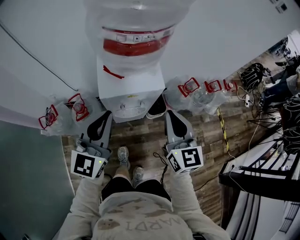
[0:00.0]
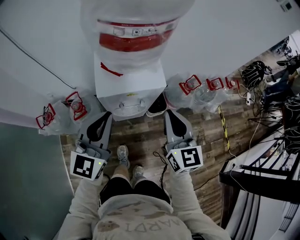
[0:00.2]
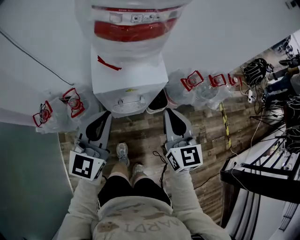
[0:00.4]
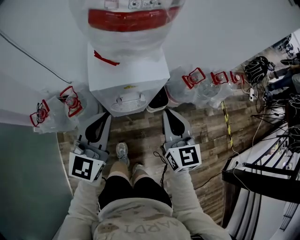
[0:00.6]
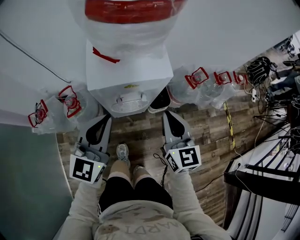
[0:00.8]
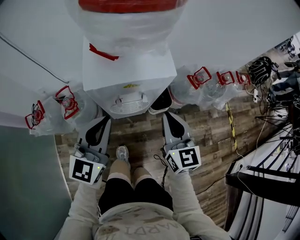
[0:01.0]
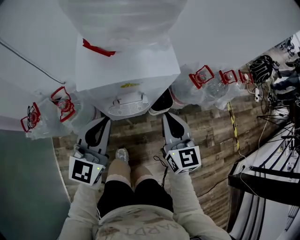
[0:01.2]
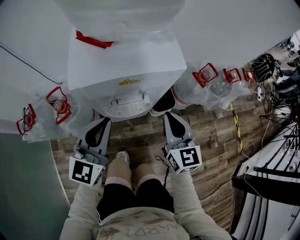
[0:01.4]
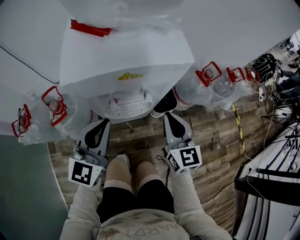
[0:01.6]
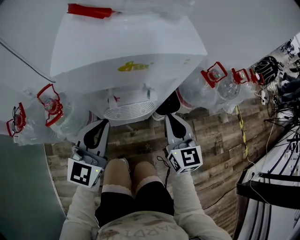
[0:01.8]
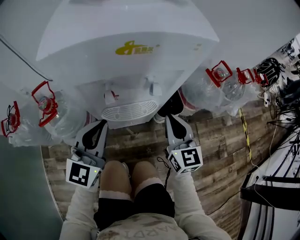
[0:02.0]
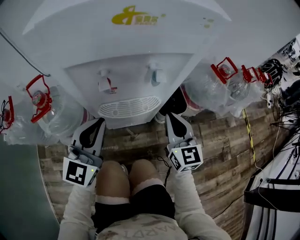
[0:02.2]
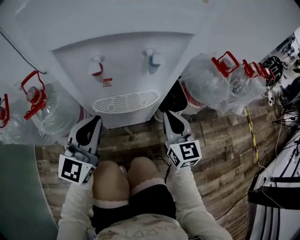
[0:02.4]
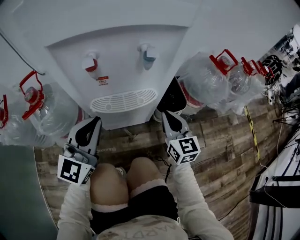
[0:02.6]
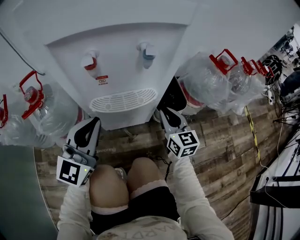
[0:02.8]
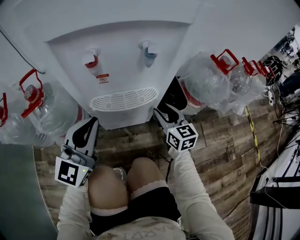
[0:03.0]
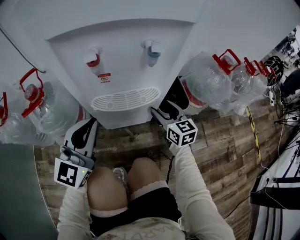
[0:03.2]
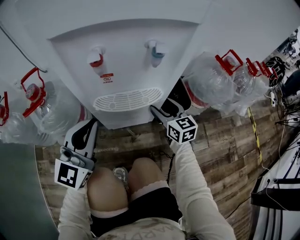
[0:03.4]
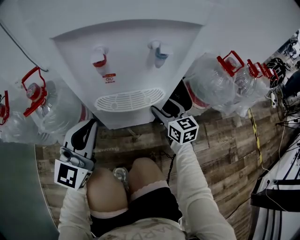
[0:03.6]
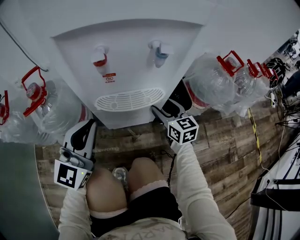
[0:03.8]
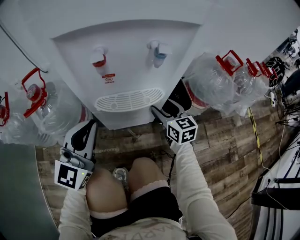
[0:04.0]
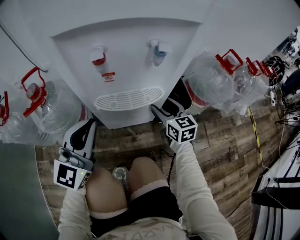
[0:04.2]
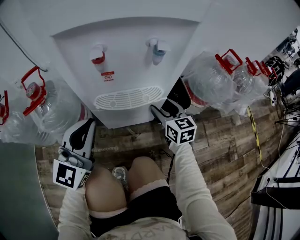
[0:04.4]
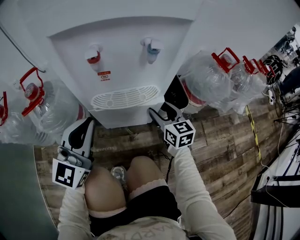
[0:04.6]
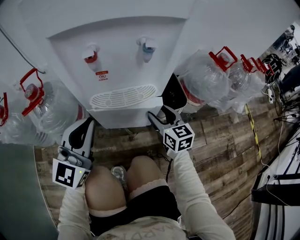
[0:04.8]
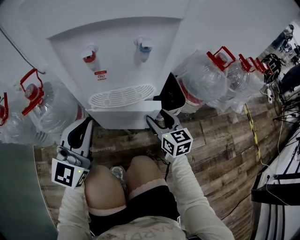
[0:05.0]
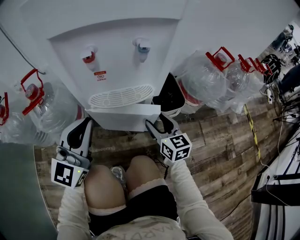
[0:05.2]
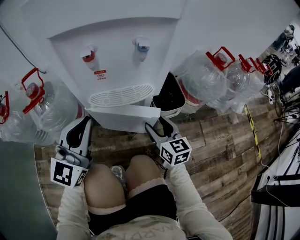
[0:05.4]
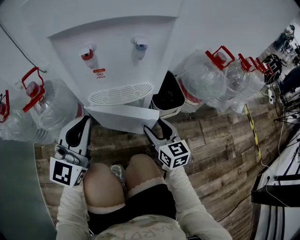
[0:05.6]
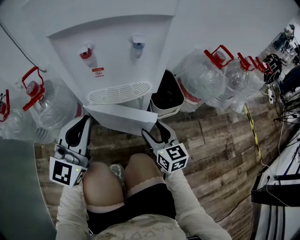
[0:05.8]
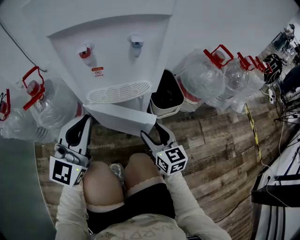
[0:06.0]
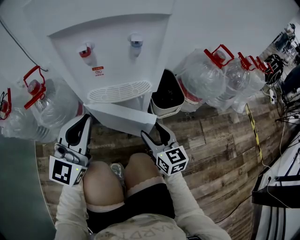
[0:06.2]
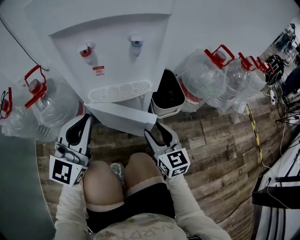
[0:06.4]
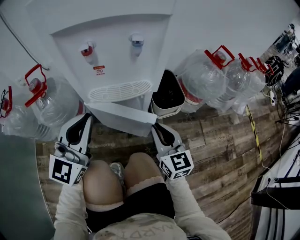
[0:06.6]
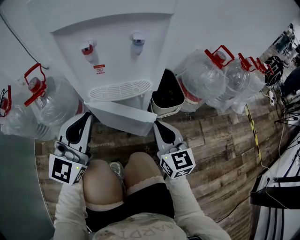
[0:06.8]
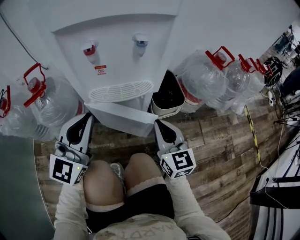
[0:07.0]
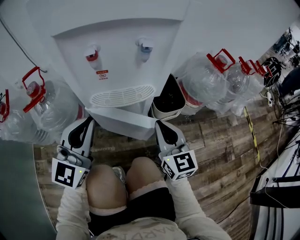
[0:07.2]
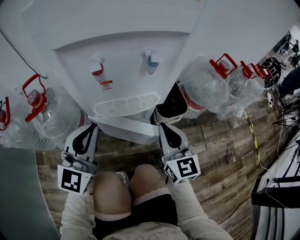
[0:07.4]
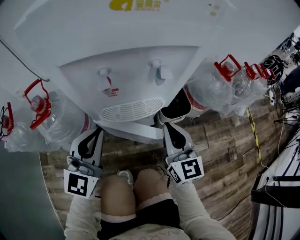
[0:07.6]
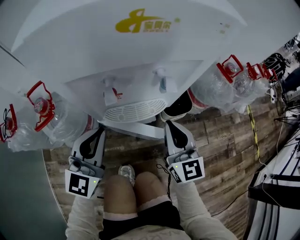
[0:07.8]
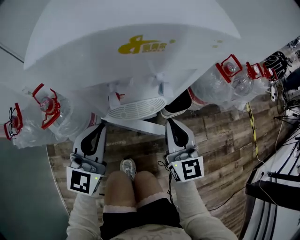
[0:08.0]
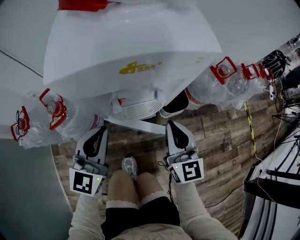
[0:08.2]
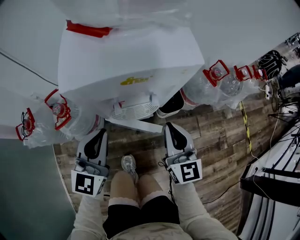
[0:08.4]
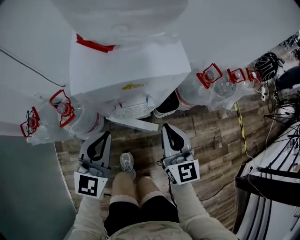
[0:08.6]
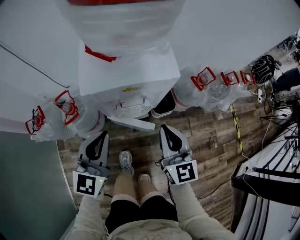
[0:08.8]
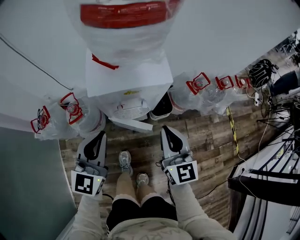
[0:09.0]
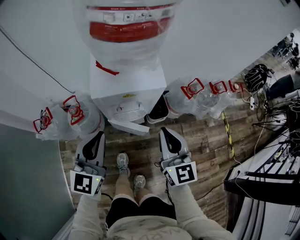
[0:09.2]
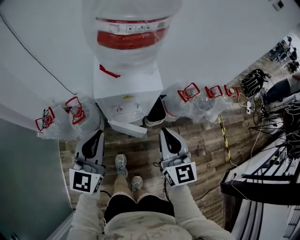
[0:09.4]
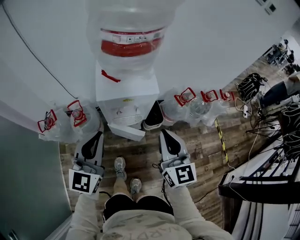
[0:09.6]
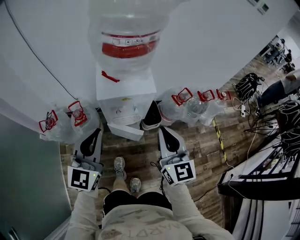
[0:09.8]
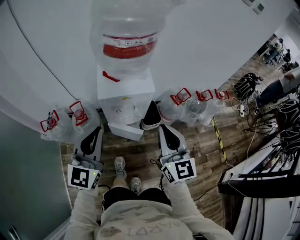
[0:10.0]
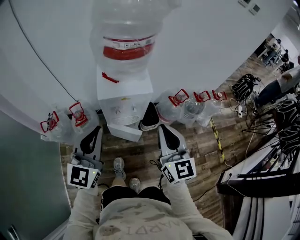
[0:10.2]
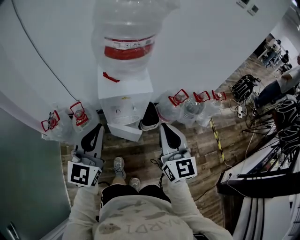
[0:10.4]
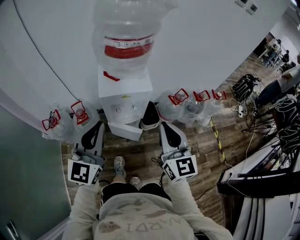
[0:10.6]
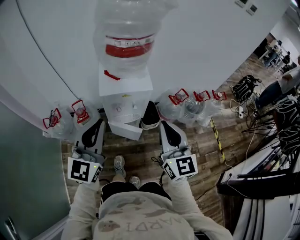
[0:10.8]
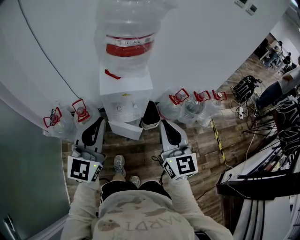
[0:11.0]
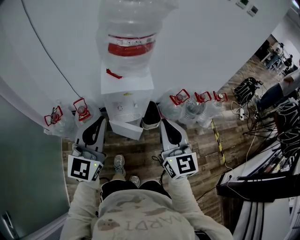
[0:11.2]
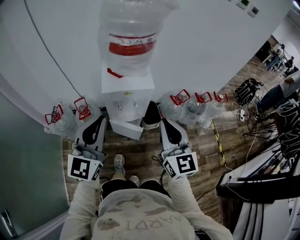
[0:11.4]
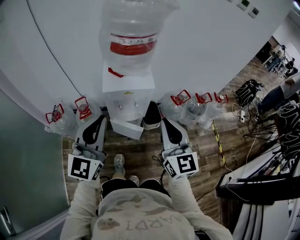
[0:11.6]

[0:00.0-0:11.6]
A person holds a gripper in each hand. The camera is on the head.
0:00.0 to 0:01.4: The two grippers go about 30 cm downward.
0:01.4 to 0:02.8: The grippers both shift downward by about 30 cm.
0:02.8 to 0:04.4: The right gripper shifts by roughly 5 cm, and opens its fingers.
0:04.4 to 0:05.8: The right gripper moves backward, approximately 10 cm.
0:05.8 to 0:07.2: The right gripper moves upward, some 10 cm, and closes.
0:07.2 to 0:08.8: Both grippers travel together upward, about 30 cm.
0:08.8 to 0:10.2: The grippers both shift upward and backward by about 30 cm.
0:10.2 to 0:11.6: The left gripper changes place by approximately 5 cm.

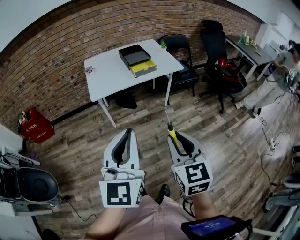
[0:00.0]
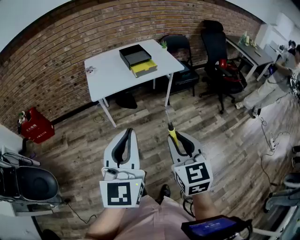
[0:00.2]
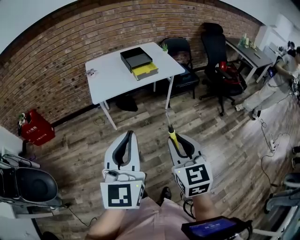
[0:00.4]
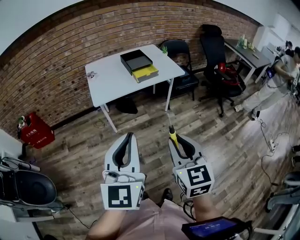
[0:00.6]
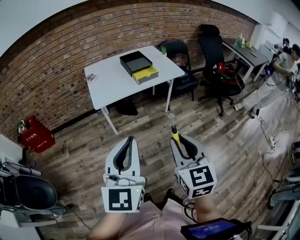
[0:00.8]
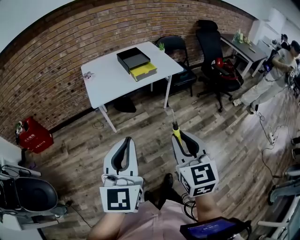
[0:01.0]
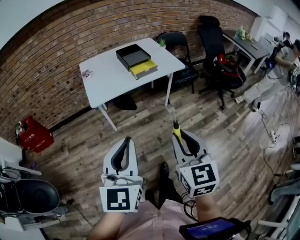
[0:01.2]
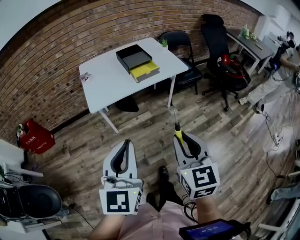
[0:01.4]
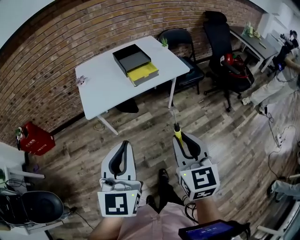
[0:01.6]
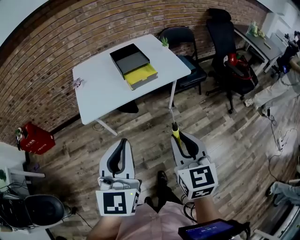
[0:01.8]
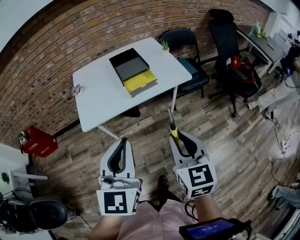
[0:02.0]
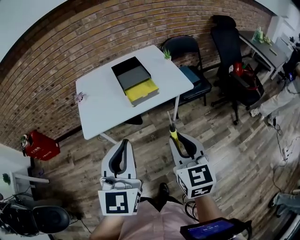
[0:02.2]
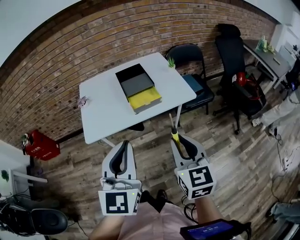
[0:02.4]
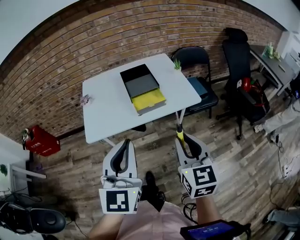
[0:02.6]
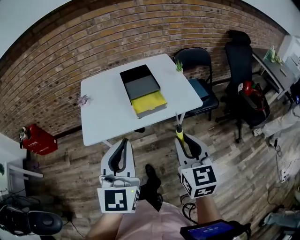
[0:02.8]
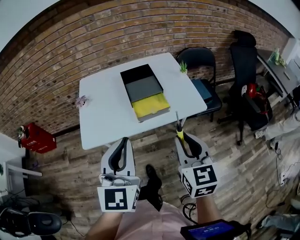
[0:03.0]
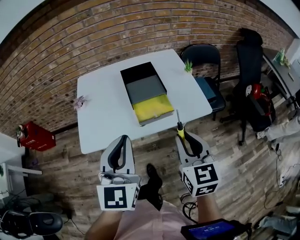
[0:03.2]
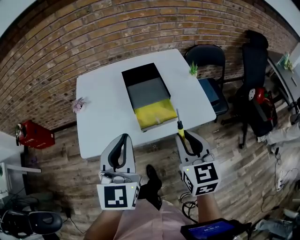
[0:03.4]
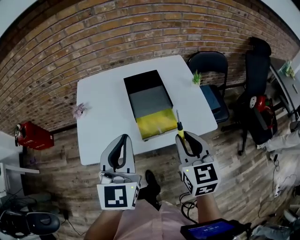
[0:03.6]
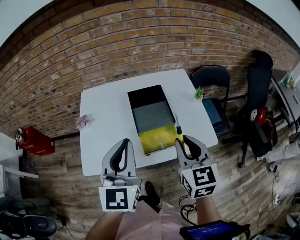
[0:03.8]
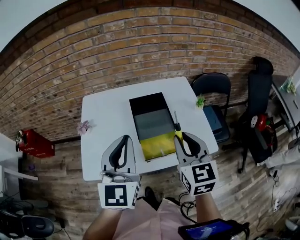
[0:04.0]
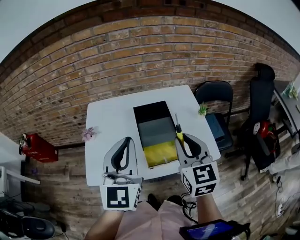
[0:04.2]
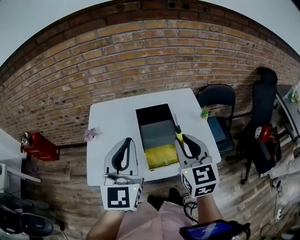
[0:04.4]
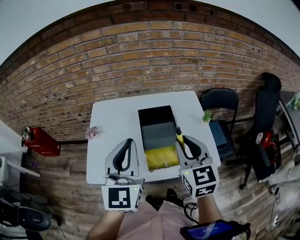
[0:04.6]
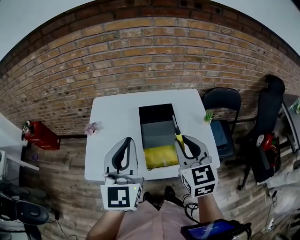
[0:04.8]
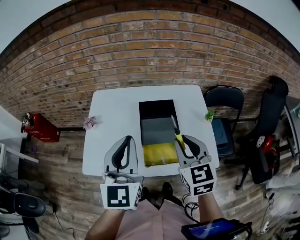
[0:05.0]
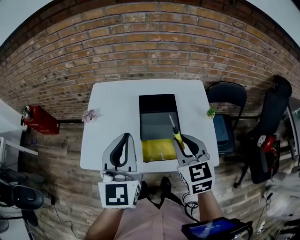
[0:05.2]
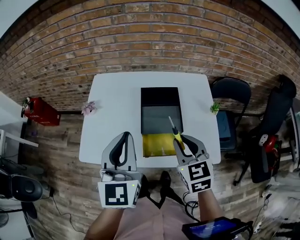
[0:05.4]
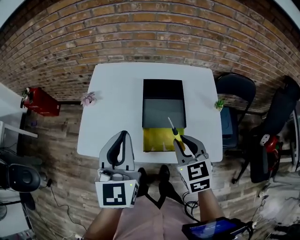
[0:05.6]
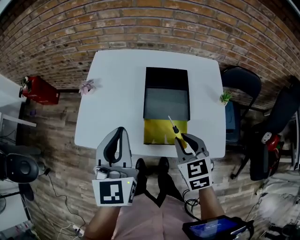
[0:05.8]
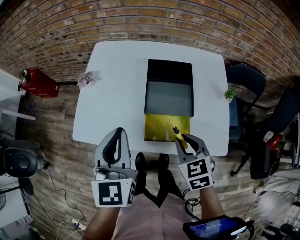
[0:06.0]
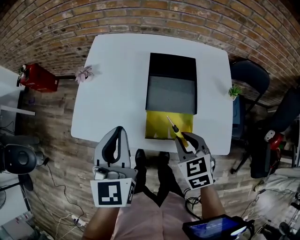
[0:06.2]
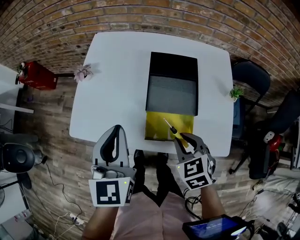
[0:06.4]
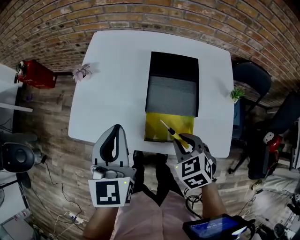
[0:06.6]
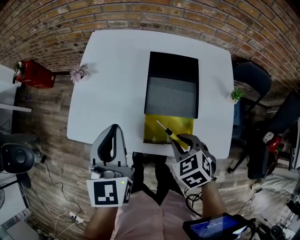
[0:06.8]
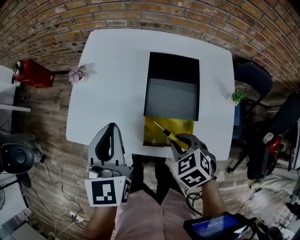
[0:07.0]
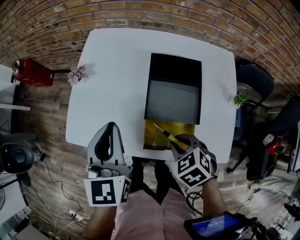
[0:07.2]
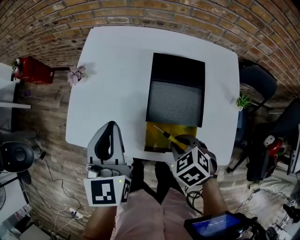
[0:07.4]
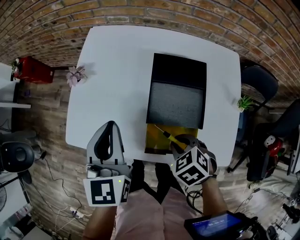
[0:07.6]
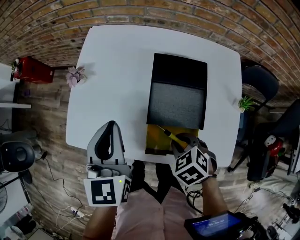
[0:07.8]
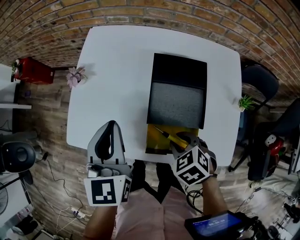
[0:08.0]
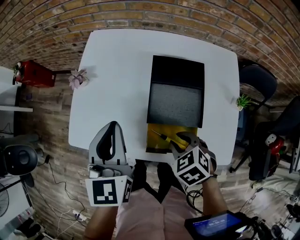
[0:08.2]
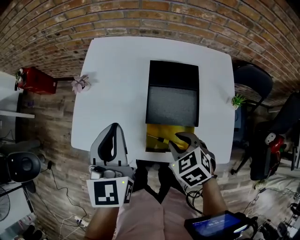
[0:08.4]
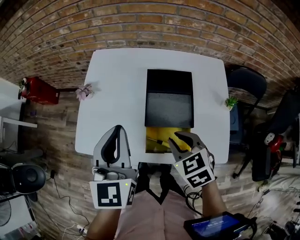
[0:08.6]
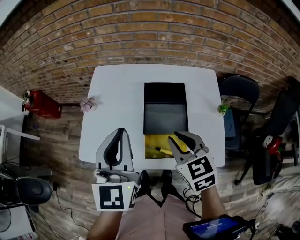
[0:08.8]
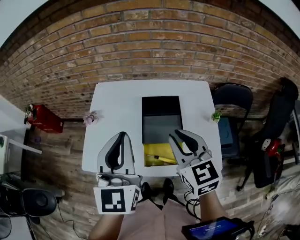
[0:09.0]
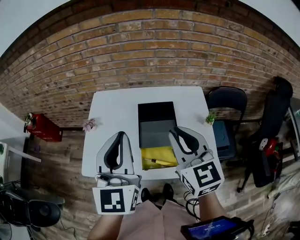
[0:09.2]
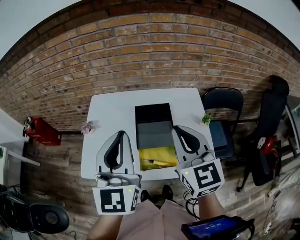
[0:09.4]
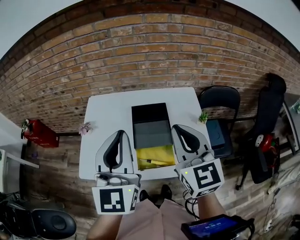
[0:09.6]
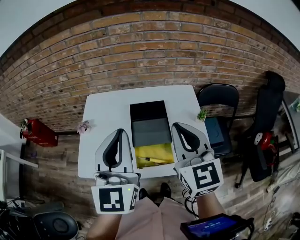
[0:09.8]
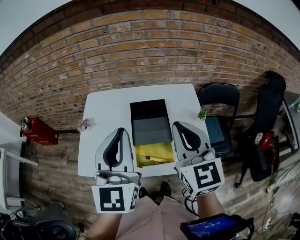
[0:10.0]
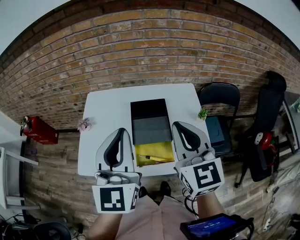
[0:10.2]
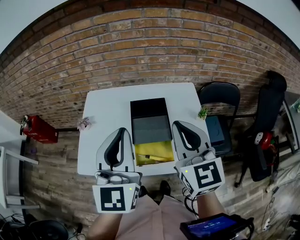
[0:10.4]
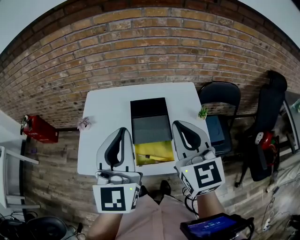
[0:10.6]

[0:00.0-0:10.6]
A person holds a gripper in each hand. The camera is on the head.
0:00.0 to 0:01.6: The two grippers go about 15 cm forward.
0:01.6 to 0:03.0: Both grippers travel together forward, roughly 25 cm.
0:03.0 to 0:04.6: Both grippers move forward, roughly 25 cm.
0:04.6 to 0:06.0: The right gripper goes about 20 cm downward, and tilts its fingers roughly 30 degrees downward. Meanwhile the left gripper shifts approximately 10 cm downward, and turns by approximately 20 degrees.
0:06.0 to 0:07.6: The right gripper moves downward, some 10 cm, and changes its angle by roughly 30 degrees, while the left gripper shifts approximately 10 cm forward and downward.
0:07.6 to 0:09.0: The left gripper heads upward, covering about 15 cm, and turns by approximately 20 degrees; the right gripper moves upward, roughly 25 cm, and angles its fingers upward, by about 50 degrees.
0:09.0 to 0:10.6: The left gripper ends up roughly 5 cm from where it was. The right gripper heads upward, covering approximately 10 cm.

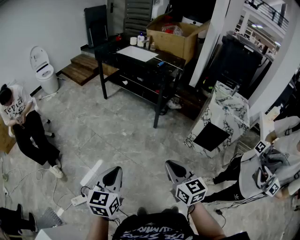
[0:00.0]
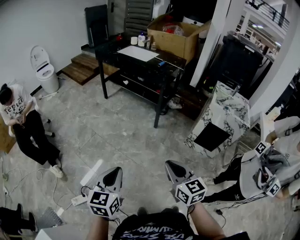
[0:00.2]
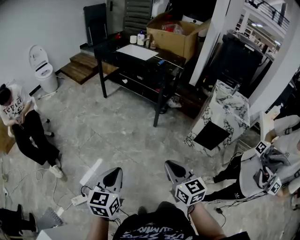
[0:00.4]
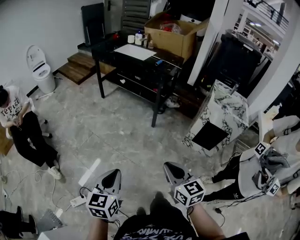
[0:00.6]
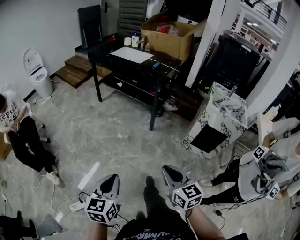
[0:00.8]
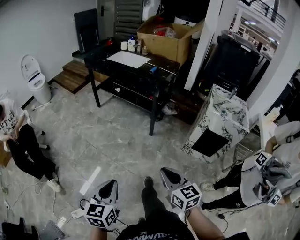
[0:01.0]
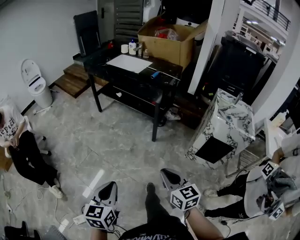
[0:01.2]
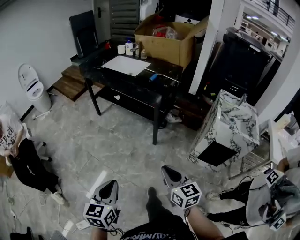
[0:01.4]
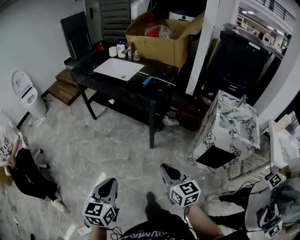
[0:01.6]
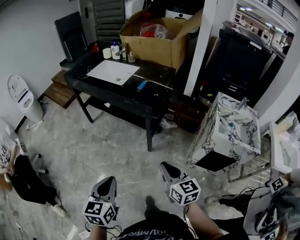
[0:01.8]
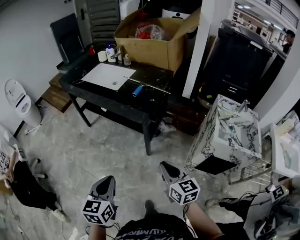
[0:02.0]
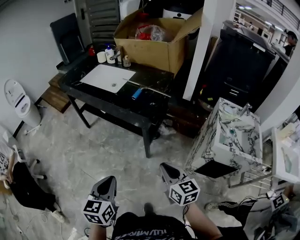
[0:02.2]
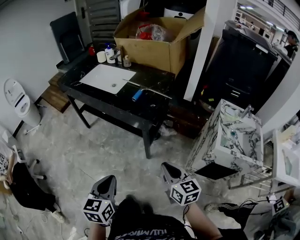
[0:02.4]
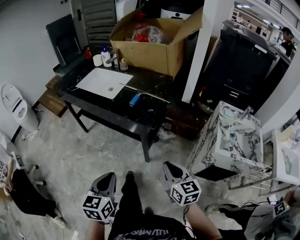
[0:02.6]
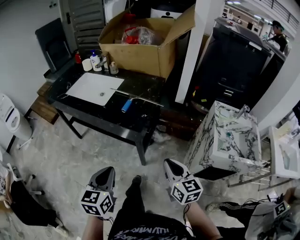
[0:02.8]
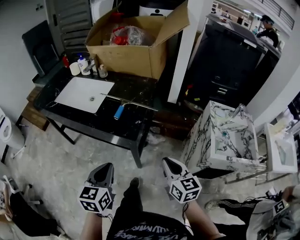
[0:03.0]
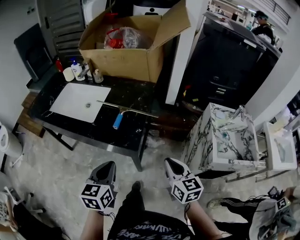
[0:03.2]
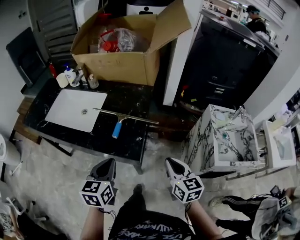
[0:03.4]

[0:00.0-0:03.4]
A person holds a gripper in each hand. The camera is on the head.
0:00.0 to 0:01.6: The grippers both shift forward by about 35 cm.
0:01.6 to 0:03.4: The two grippers travel together, forward, roughly 50 cm. The right gripper rotates about 20 degrees.
